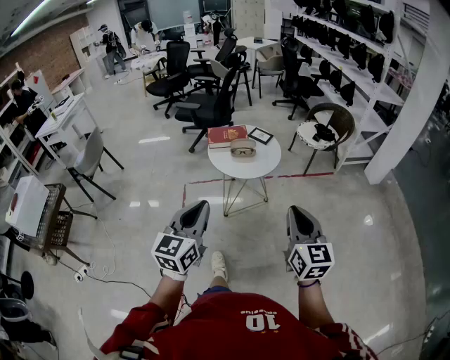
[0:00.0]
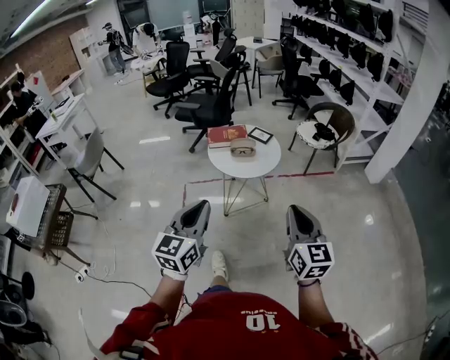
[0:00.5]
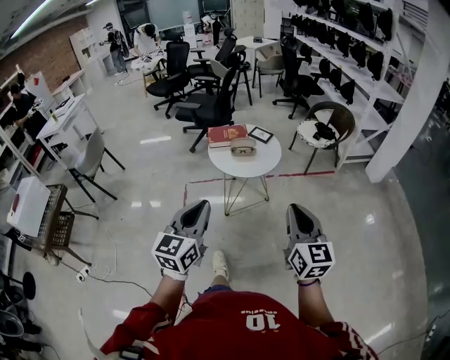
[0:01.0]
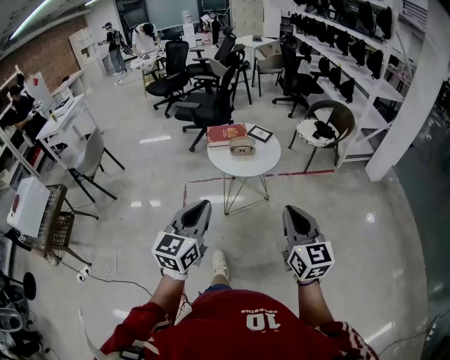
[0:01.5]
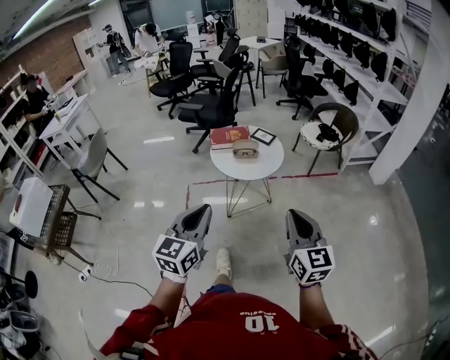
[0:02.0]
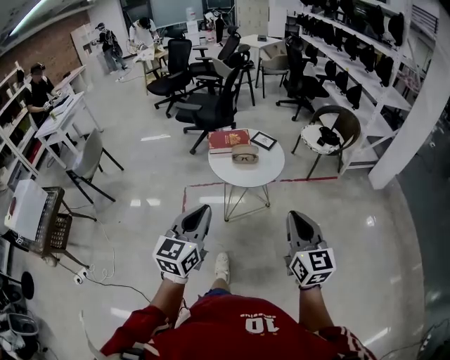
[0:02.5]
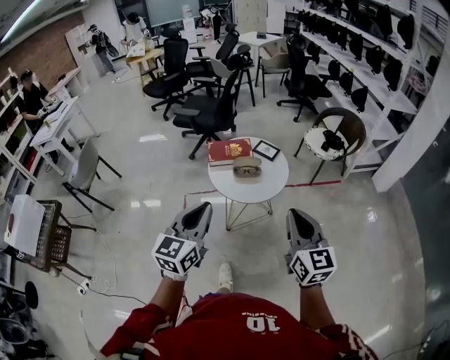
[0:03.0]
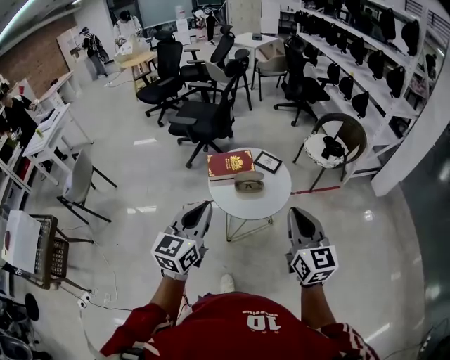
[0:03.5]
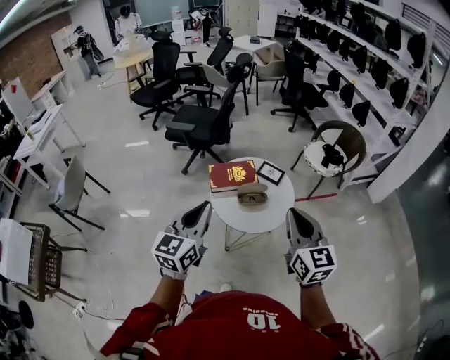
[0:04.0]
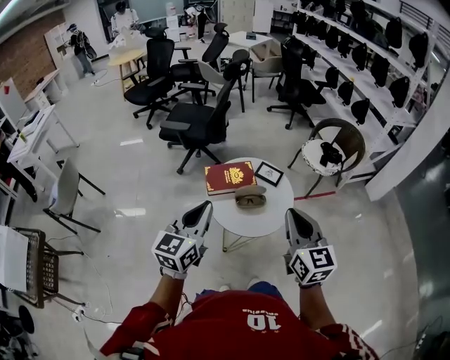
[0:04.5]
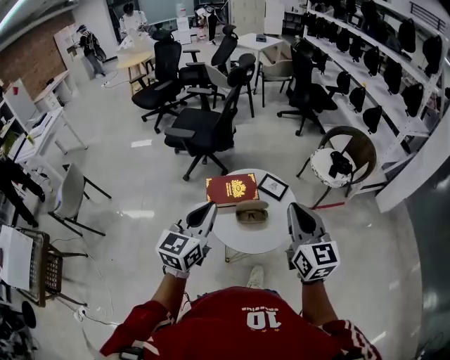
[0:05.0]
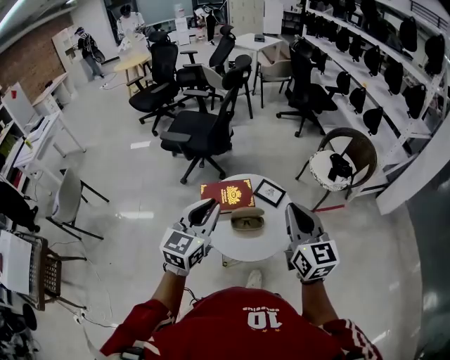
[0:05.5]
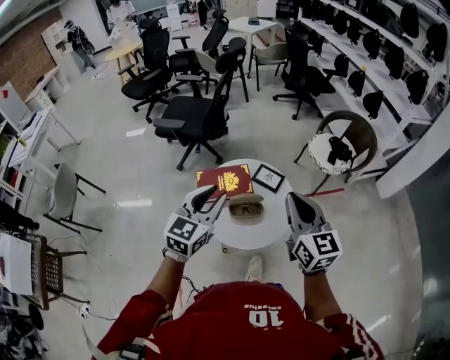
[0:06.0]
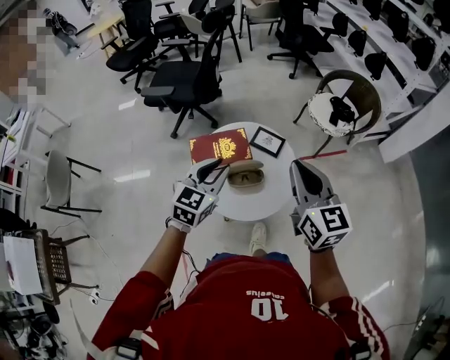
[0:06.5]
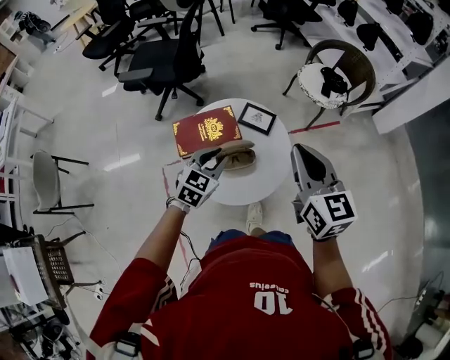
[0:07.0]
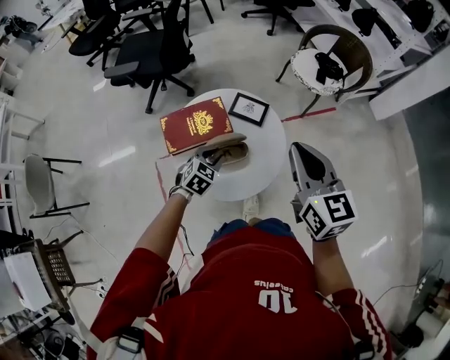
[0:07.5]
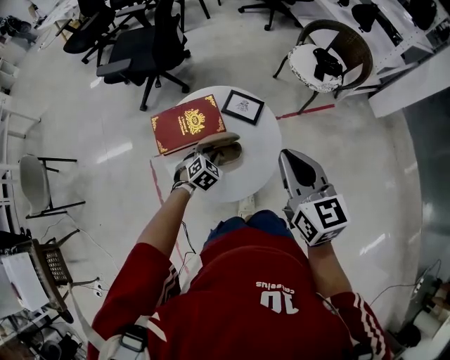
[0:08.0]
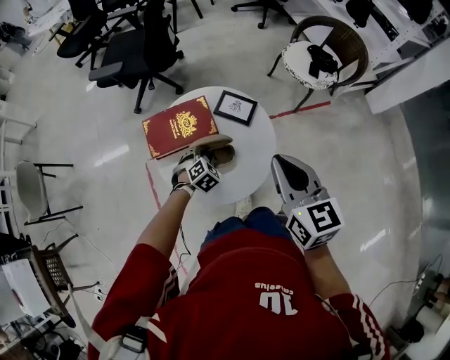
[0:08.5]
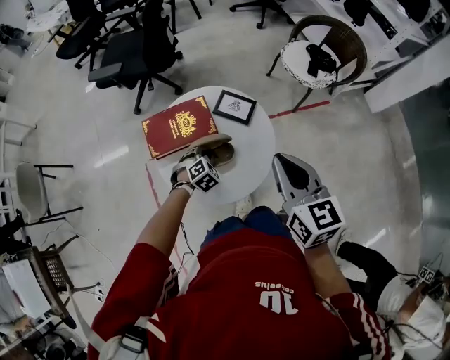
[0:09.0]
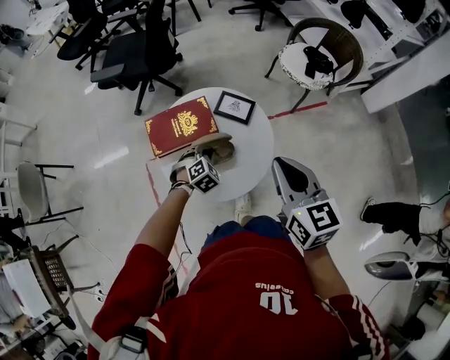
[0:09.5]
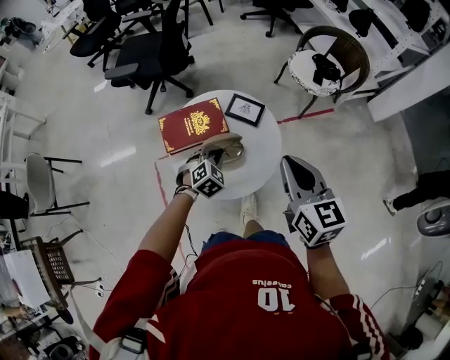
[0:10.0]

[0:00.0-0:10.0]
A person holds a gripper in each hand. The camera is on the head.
0:00.0 to 0:02.0: The grippers move only a little.
0:02.0 to 0:04.0: The grippers both shift forward by some 35 cm.
0:04.0 to 0:06.0: The left gripper moves forward and to the right, approximately 20 cm, and opens, while the right gripper heads forward, covering some 20 cm.
0:06.0 to 0:08.0: The right gripper shifts roughly 15 cm downward and forward, while the left gripper shifts about 40 cm downward, and tips its fingers downward by roughly 40 degrees.
0:08.0 to 0:10.0: The left gripper is displaced upward by some 10 cm.

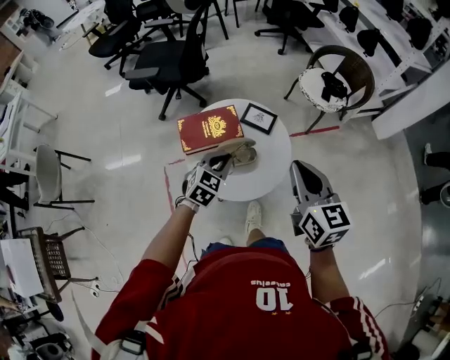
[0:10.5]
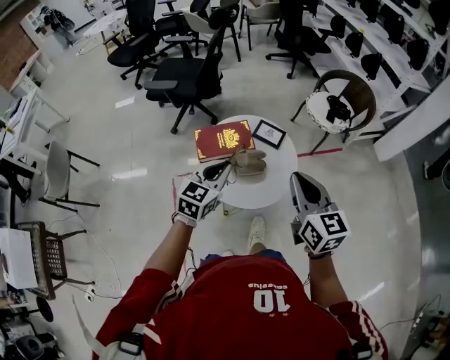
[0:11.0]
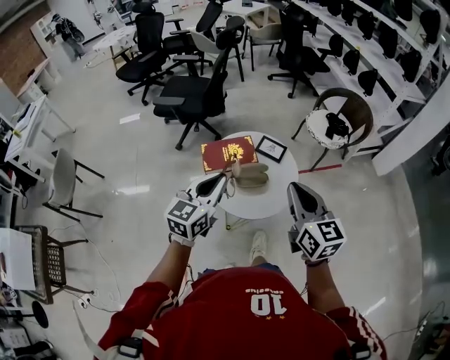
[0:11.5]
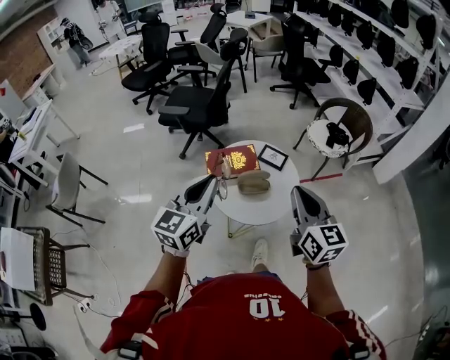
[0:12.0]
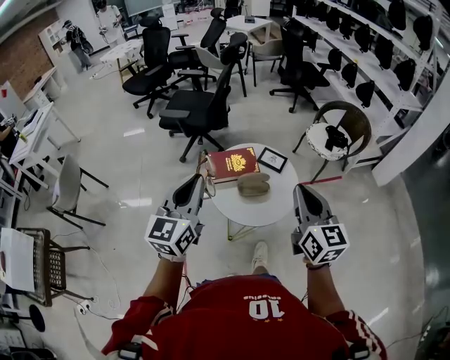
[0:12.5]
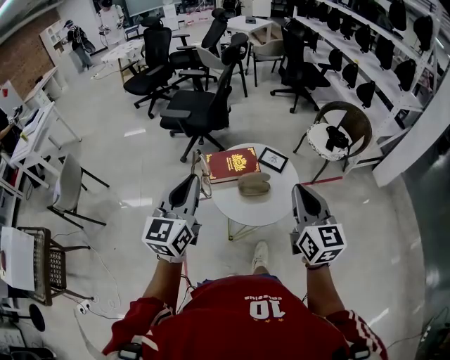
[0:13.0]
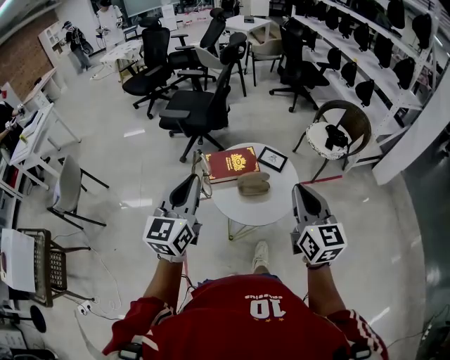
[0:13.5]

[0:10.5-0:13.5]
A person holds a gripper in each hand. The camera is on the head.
0:10.5 to 0:12.0: The left gripper goes about 30 cm upward, backward and to the left, and points its fingers approximately 30 degrees further upward. Meanwhile the right gripper heads backward and upward, covering roughly 10 cm.
0:12.0 to 0:13.5: The left gripper ends up some 5 cm from where it was.

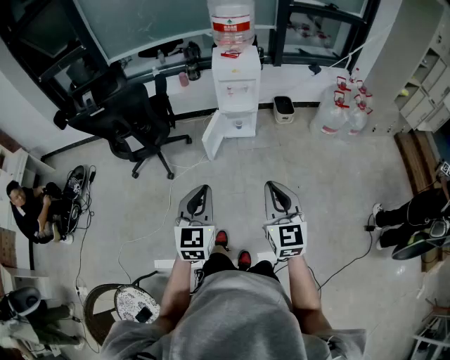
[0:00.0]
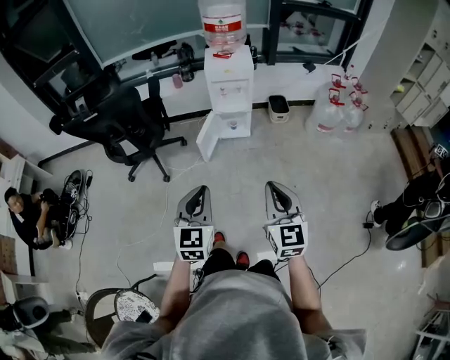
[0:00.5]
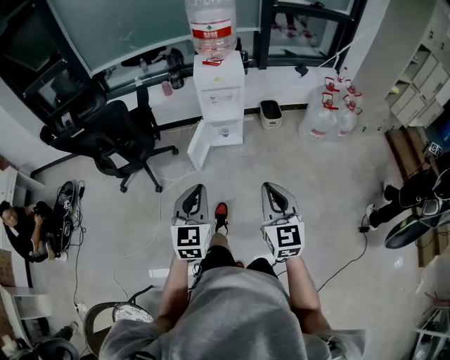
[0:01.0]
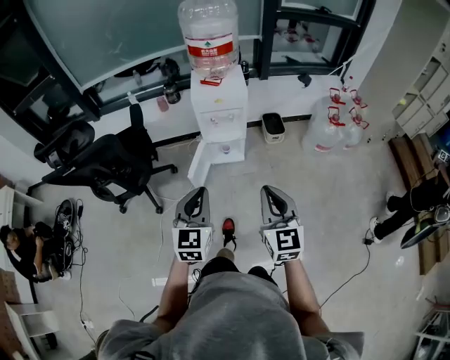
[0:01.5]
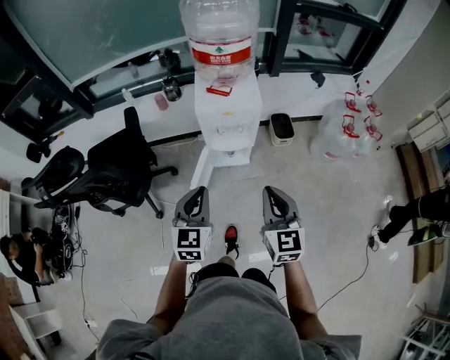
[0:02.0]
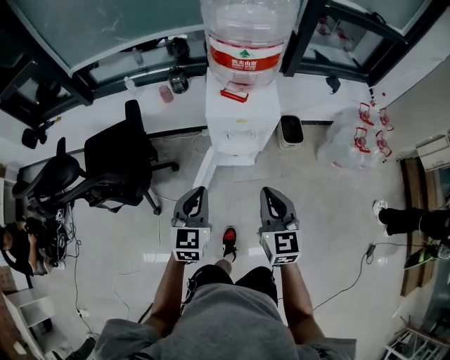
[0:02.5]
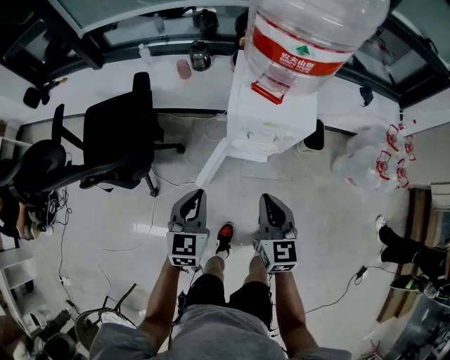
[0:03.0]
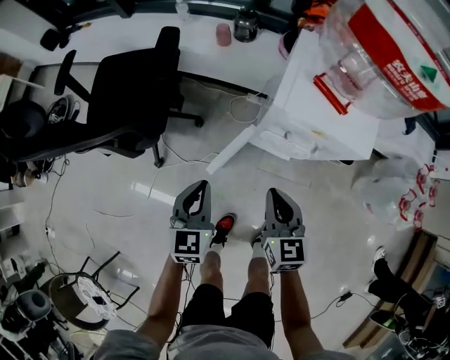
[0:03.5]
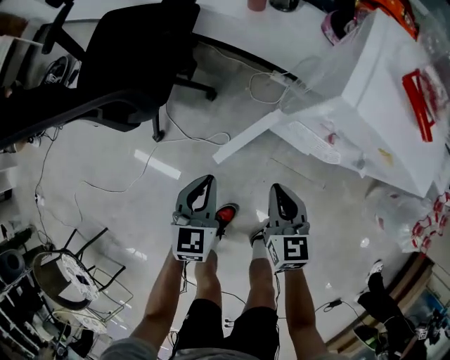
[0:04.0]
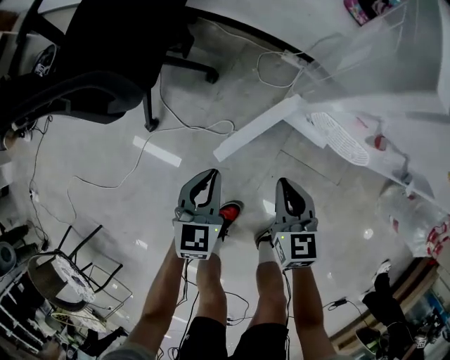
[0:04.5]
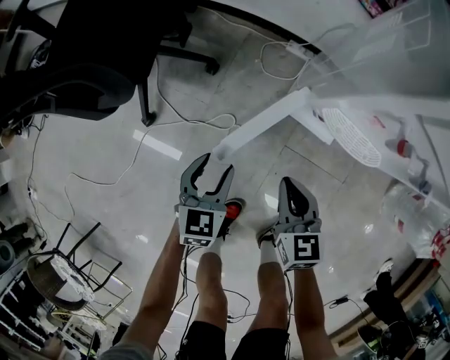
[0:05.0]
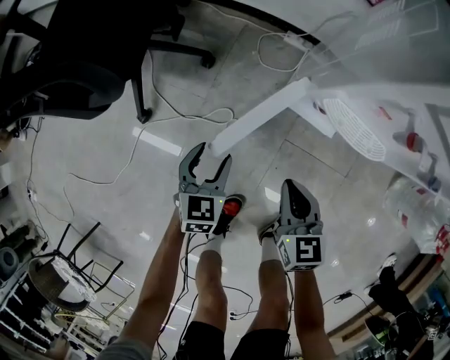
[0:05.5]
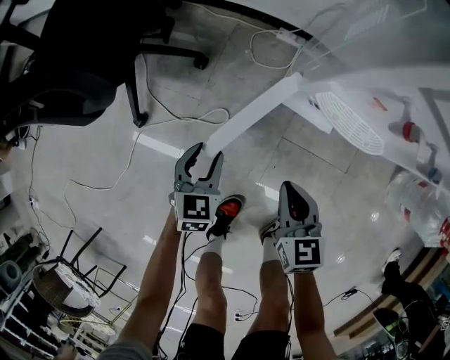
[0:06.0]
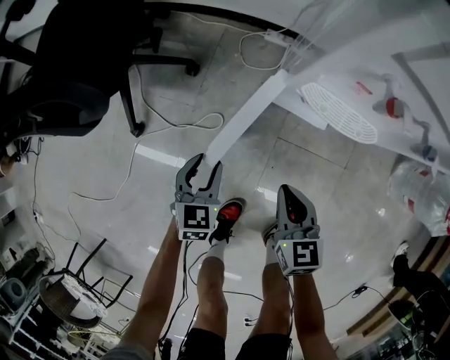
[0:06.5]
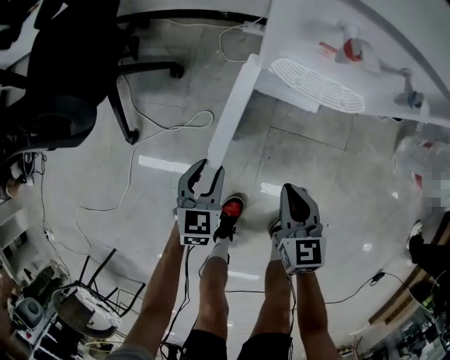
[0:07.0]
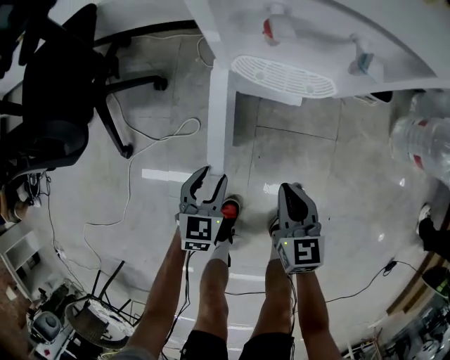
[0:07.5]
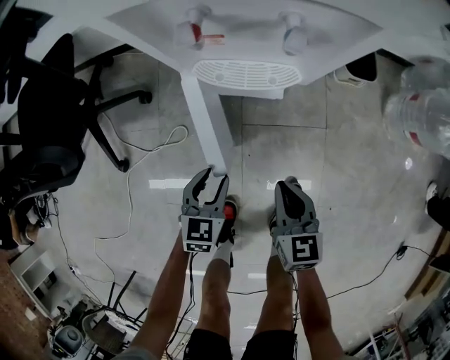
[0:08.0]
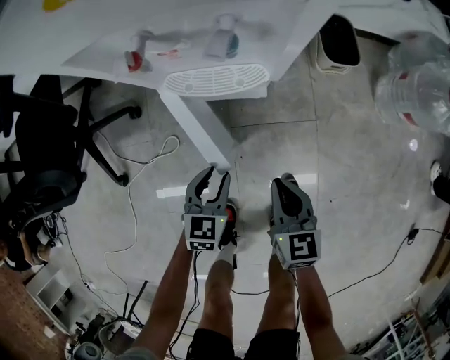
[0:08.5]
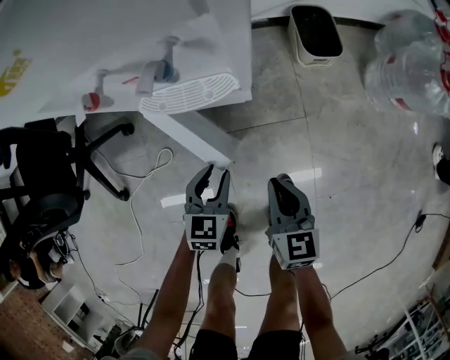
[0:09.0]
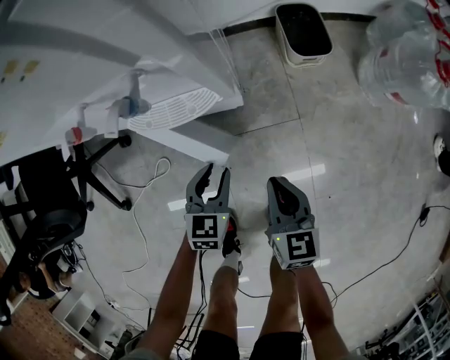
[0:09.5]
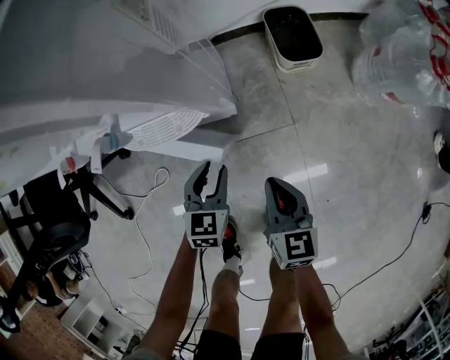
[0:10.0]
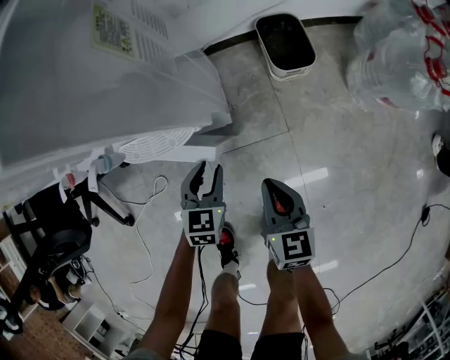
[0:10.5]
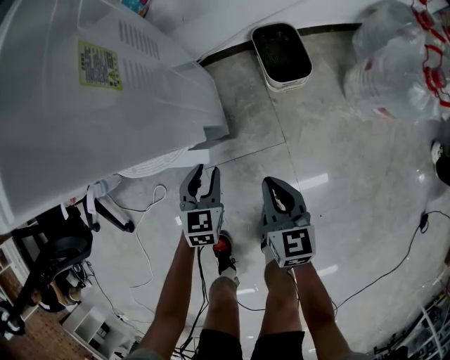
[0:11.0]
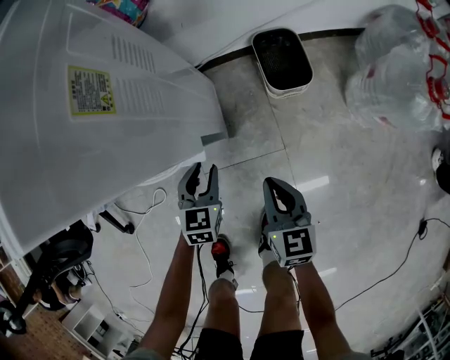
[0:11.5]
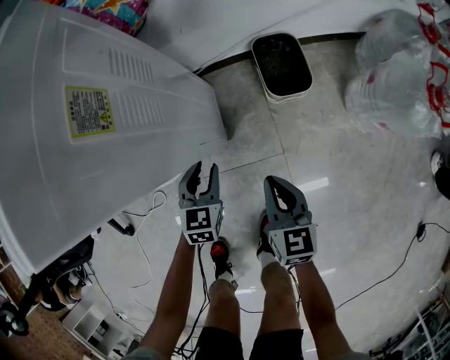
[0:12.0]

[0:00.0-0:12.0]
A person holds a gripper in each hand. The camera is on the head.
0:00.0 to 0:02.0: Both grippers move forward, approximately 40 cm.
0:02.0 to 0:04.0: The grippers both shift downward by some 40 cm. The right gripper swivels some 40 degrees, while the left gripper turns by some 30 degrees.
0:04.0 to 0:06.0: The two grippers go roughly 20 cm downward. The left gripper opens up.
0:06.0 to 0:08.0: The right gripper heads to the right and backward, covering about 15 cm, and turns by some 20 degrees; the left gripper shifts approximately 20 cm to the right, and rotates some 20 degrees.
0:08.0 to 0:10.0: Both grippers travel together to the right and forward, roughly 15 cm.
0:10.0 to 0:12.0: The right gripper shifts roughly 15 cm forward and to the right; the left gripper travels forward by some 10 cm.

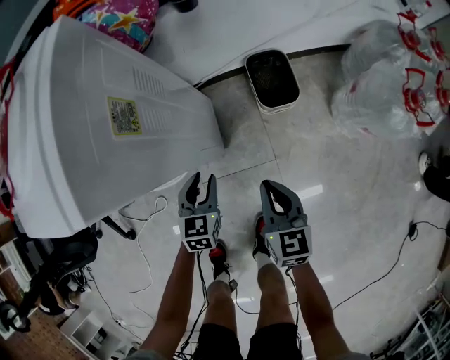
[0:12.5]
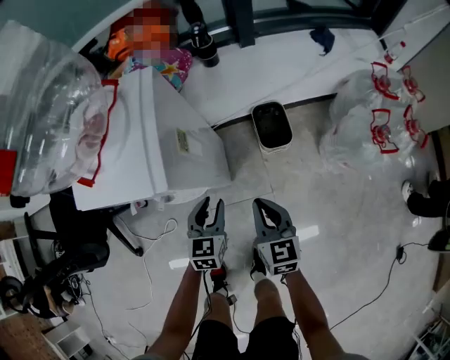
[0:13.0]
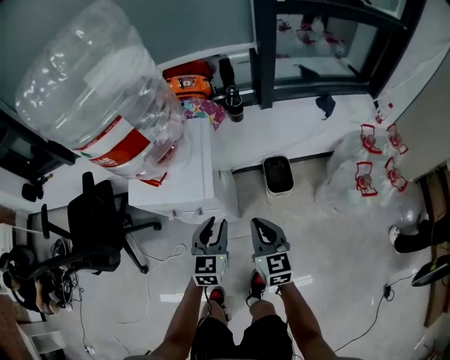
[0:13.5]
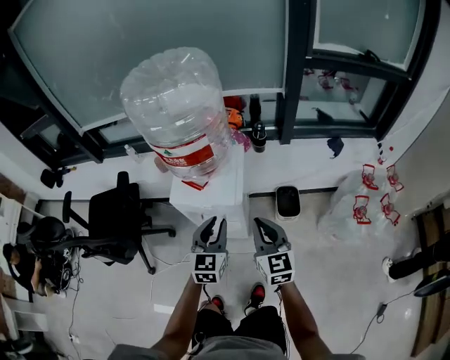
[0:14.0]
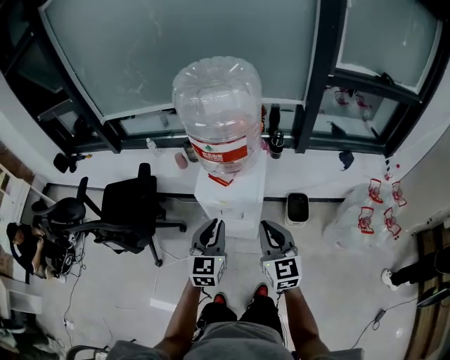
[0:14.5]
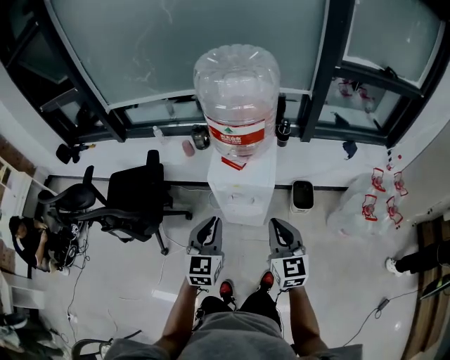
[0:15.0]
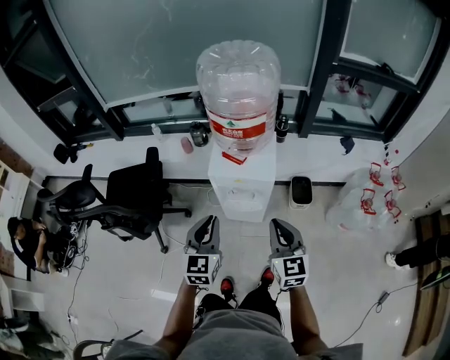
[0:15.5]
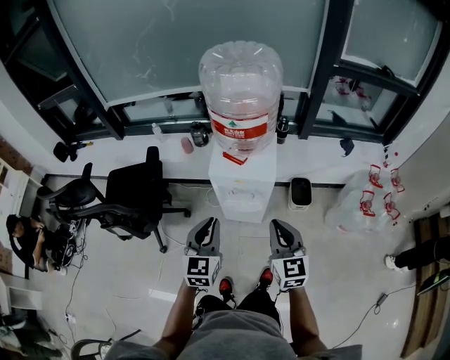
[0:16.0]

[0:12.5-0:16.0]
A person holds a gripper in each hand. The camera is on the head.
0:12.5 to 0:14.5: Both grippers move upward, about 50 cm. The left gripper turns by roughly 30 degrees. The right gripper turns by roughly 30 degrees.
0:14.5 to 0:16.0: The left gripper moves to the left and backward, about 10 cm; the right gripper is displaced backward by roughly 10 cm.
